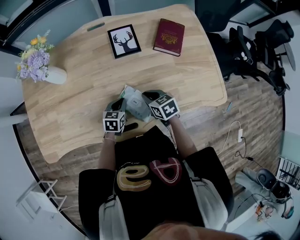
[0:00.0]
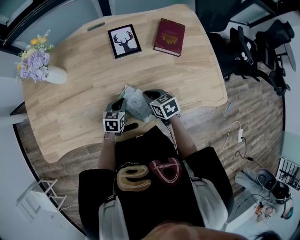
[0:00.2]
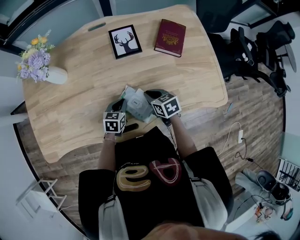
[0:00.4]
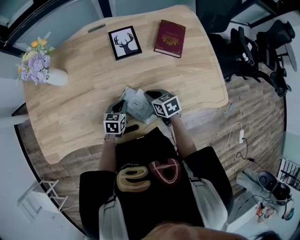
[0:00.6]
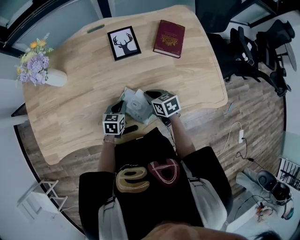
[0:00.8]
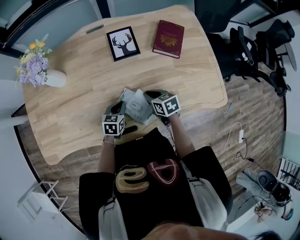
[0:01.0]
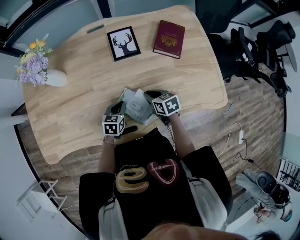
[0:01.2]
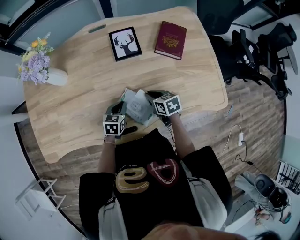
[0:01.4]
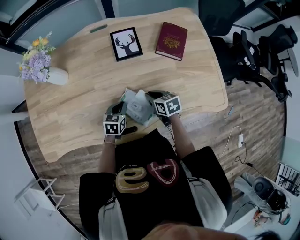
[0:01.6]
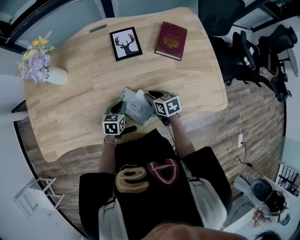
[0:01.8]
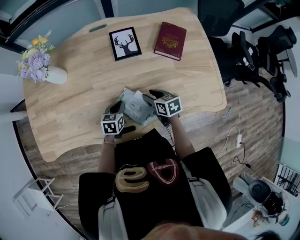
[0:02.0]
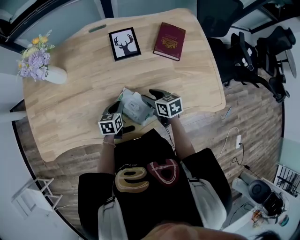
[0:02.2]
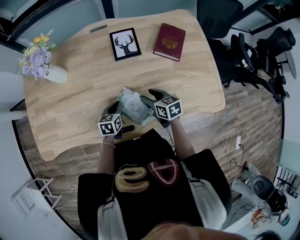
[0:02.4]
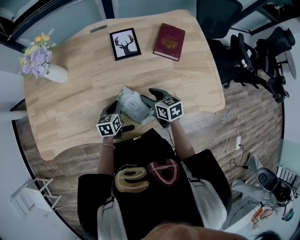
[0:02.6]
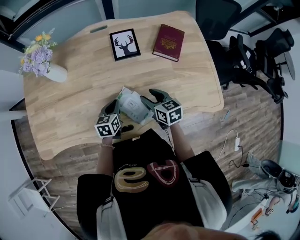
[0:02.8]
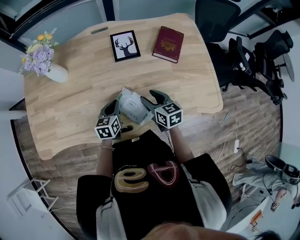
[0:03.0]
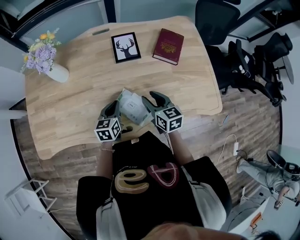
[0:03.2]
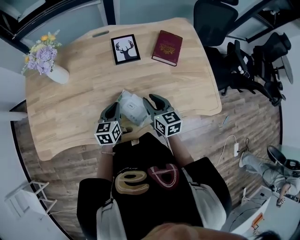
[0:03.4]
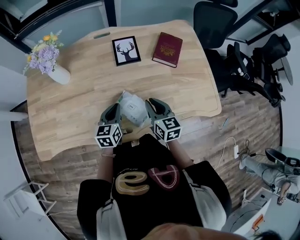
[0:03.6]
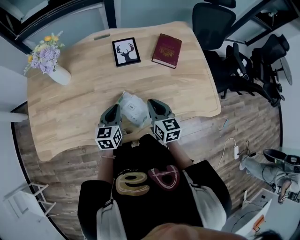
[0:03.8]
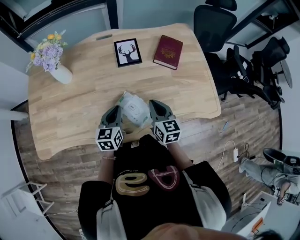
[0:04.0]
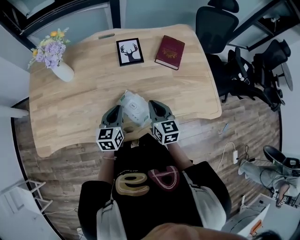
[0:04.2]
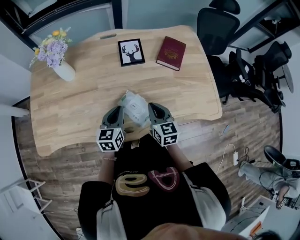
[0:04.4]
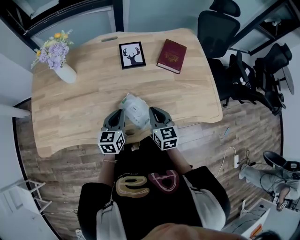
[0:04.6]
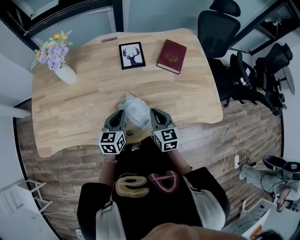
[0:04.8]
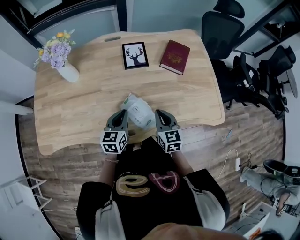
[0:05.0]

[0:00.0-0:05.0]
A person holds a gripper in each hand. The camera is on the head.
0.0 to 1.6 s: The grippers stay close to where they were, moving slightly.
1.6 to 3.4 s: Both grippers move upward, approximately 10 cm. The right gripper turns by approximately 30 degrees; the left gripper changes its angle by approximately 20 degrees.
3.4 to 5.0 s: The right gripper changes place by about 5 cm, and closes its fingers.

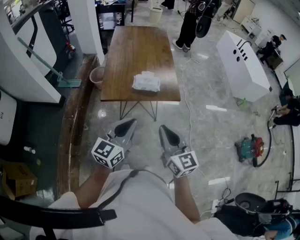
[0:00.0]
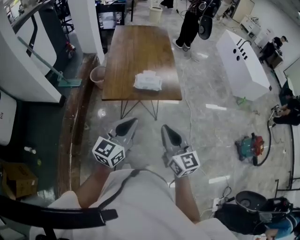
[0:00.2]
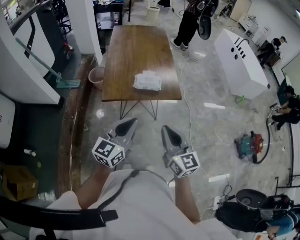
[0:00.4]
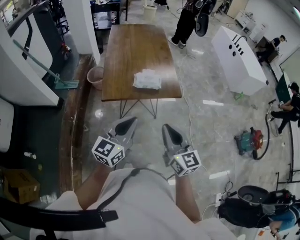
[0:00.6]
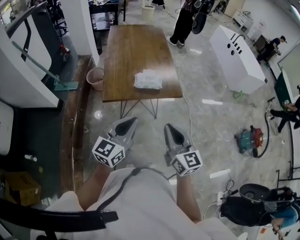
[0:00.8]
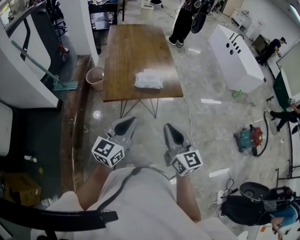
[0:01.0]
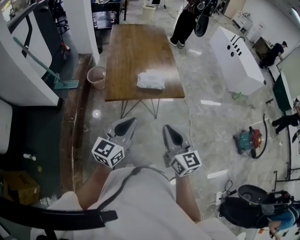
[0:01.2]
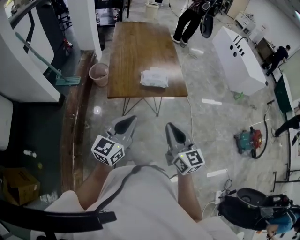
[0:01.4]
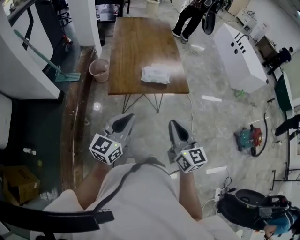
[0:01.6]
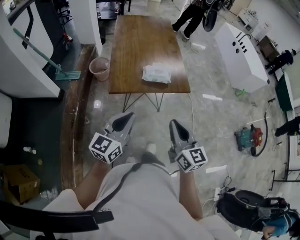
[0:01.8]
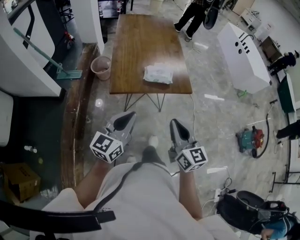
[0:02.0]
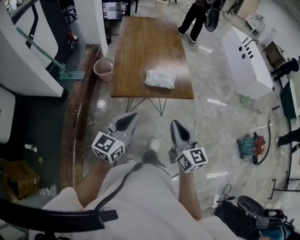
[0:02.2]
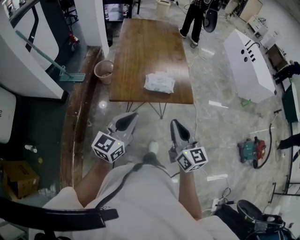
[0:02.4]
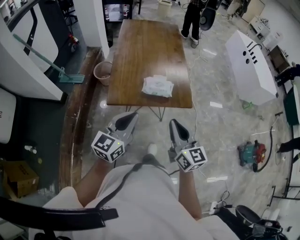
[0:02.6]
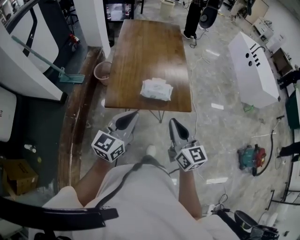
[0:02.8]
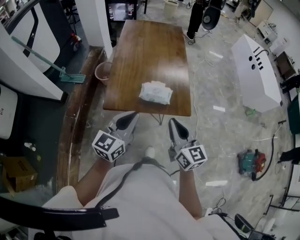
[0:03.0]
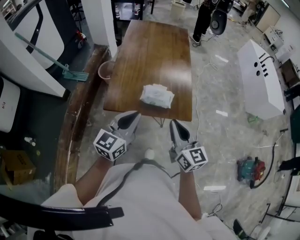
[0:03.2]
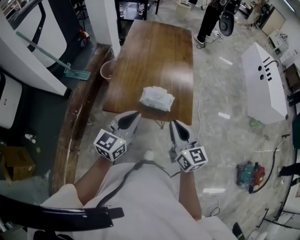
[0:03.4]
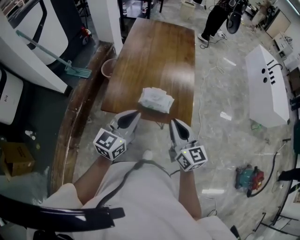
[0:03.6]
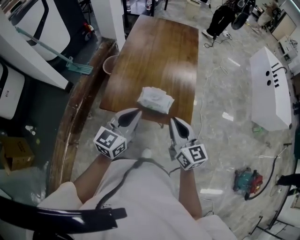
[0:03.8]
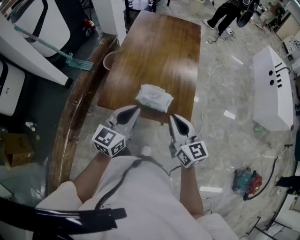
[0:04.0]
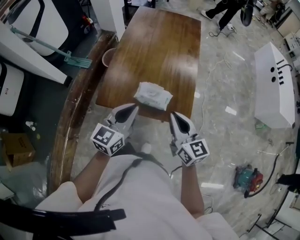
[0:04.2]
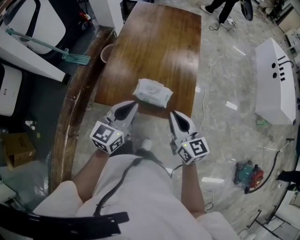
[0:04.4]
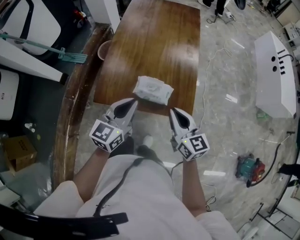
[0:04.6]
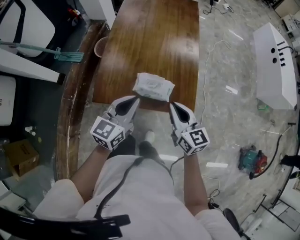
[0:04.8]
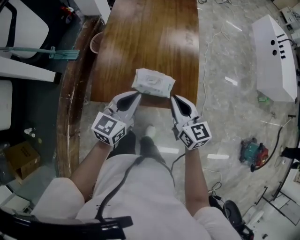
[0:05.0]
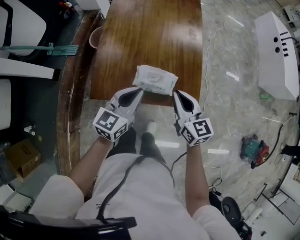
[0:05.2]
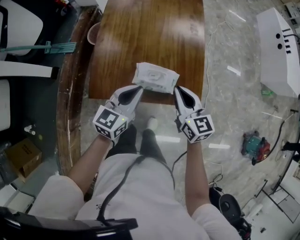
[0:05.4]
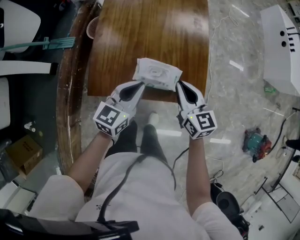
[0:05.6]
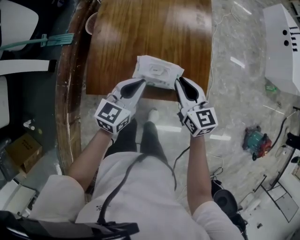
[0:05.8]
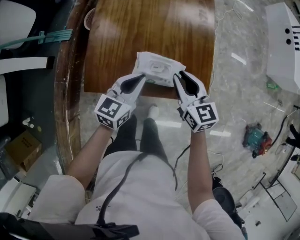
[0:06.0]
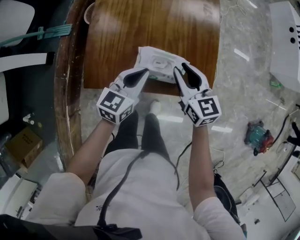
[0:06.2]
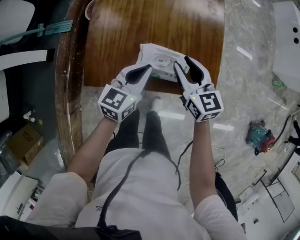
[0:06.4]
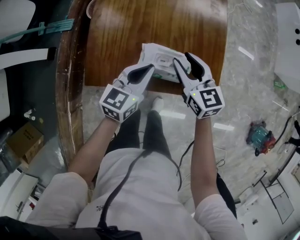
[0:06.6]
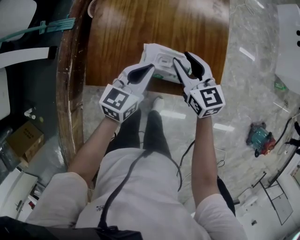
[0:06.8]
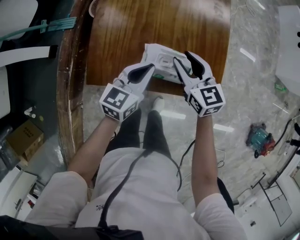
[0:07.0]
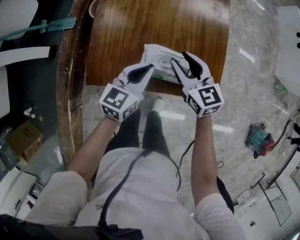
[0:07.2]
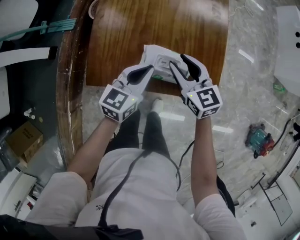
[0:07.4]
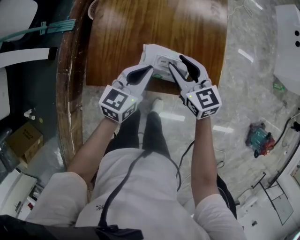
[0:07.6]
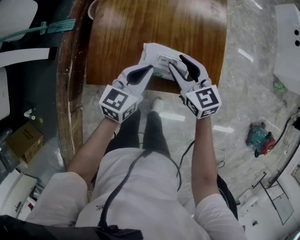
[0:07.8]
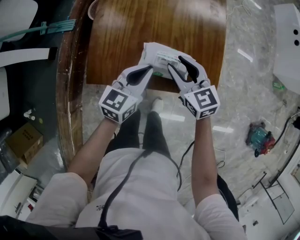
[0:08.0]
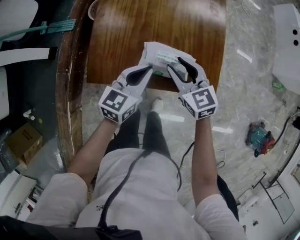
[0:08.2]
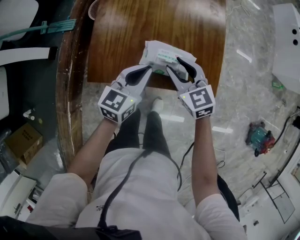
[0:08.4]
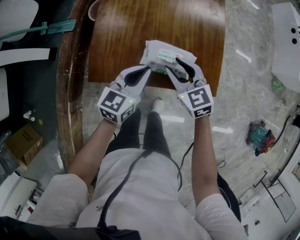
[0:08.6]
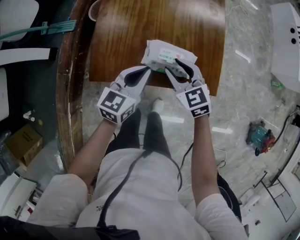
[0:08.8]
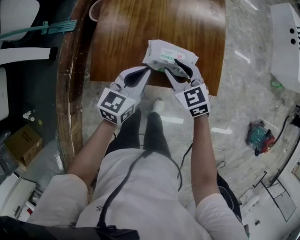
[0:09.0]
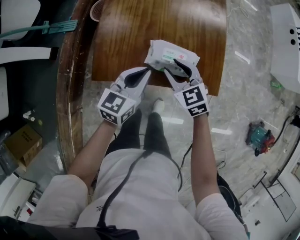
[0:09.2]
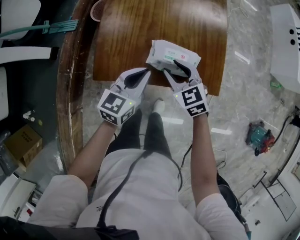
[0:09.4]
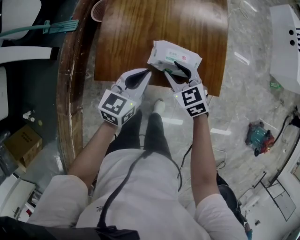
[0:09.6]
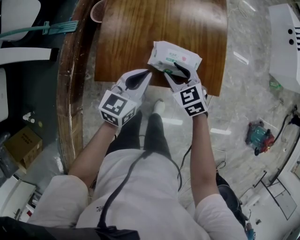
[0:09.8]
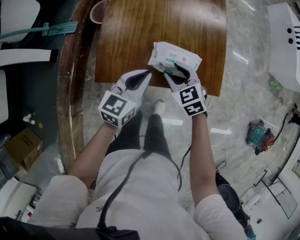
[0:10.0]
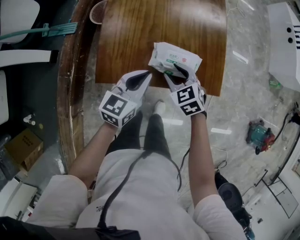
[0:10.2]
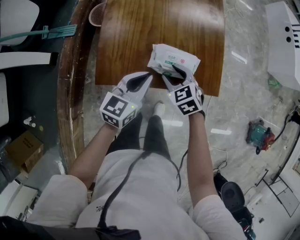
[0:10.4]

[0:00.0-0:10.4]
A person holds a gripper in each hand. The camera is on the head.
0.0 to 1.4 s: Both grippers travel together to the left, approximately 10 cm.
1.4 to 3.0 s: Both grippers travel together forward, approximately 20 cm.
3.0 to 4.4 s: The left gripper goes approximately 15 cm forward and to the right. The right gripper moves forward, to the right and downward, about 15 cm.
4.4 to 6.0 s: The grippers both shift downward and forward by roughly 20 cm.
6.0 to 7.4 s: The right gripper ends up approximately 5 cm from where it was.
7.4 to 9.0 s: The left gripper changes place by roughly 5 cm. The right gripper heads backward, covering roughly 5 cm.
9.0 to 10.4 s: There are only small adjustments of the grippers.

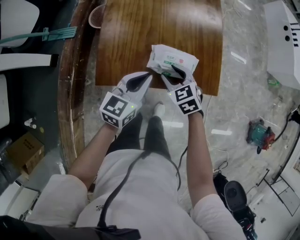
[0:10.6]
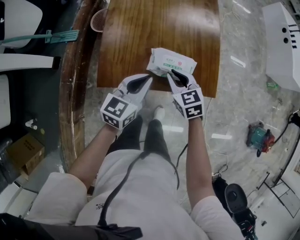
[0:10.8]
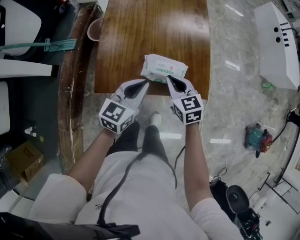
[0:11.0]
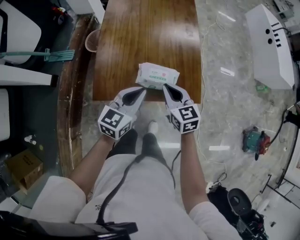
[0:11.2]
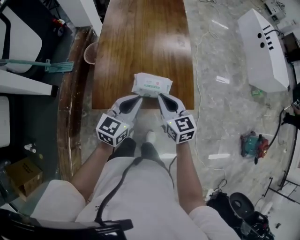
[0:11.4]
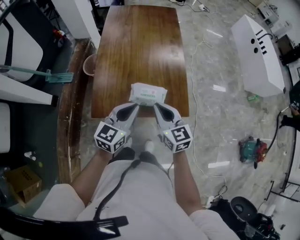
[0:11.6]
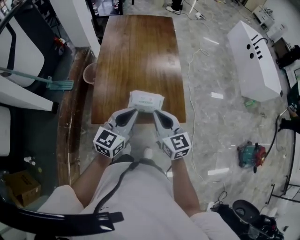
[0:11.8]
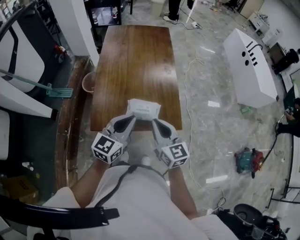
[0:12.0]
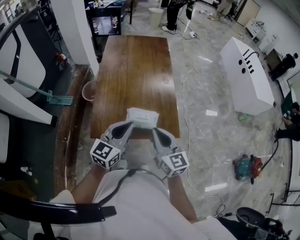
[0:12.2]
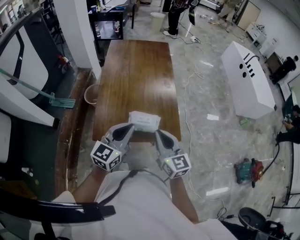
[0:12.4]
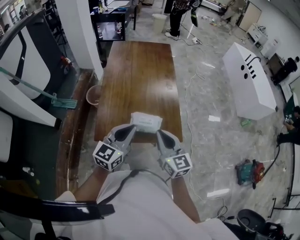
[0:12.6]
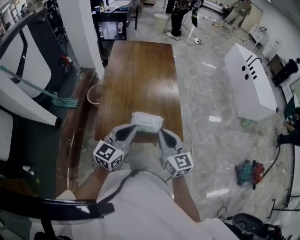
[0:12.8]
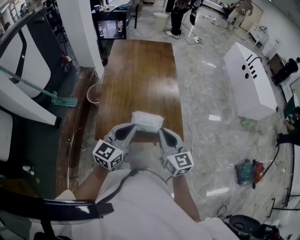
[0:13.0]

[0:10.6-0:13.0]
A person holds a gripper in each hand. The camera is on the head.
10.6 to 11.8 s: Both grippers travel together upward, approximately 20 cm. The right gripper tips its fingers upward by some 30 degrees, and closes up.
11.8 to 13.0 s: The right gripper travels upward by roughly 5 cm, while the left gripper ends up about 5 cm from where it was.

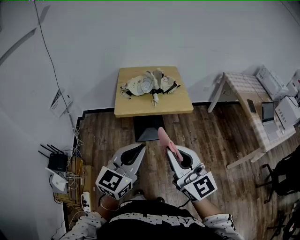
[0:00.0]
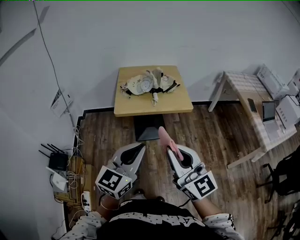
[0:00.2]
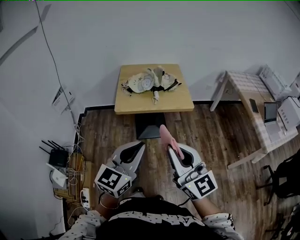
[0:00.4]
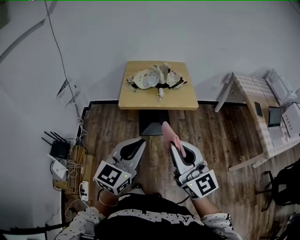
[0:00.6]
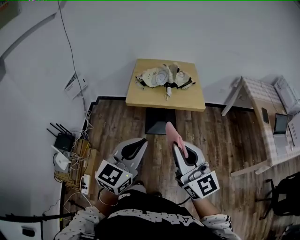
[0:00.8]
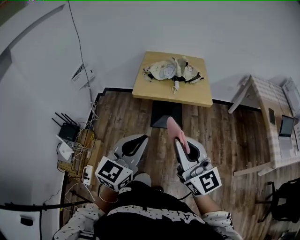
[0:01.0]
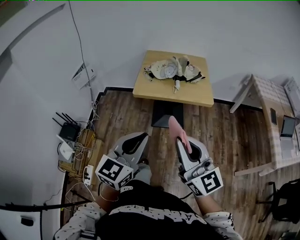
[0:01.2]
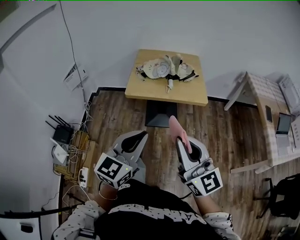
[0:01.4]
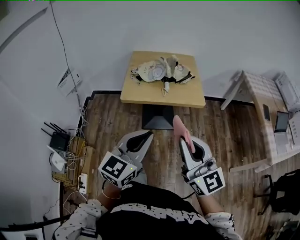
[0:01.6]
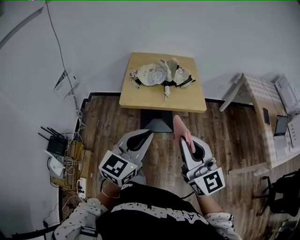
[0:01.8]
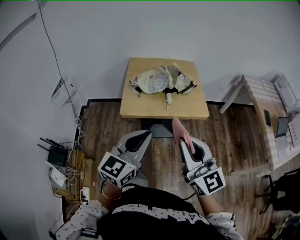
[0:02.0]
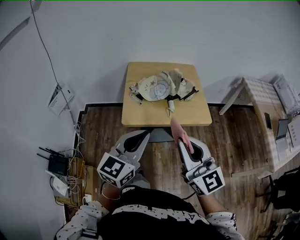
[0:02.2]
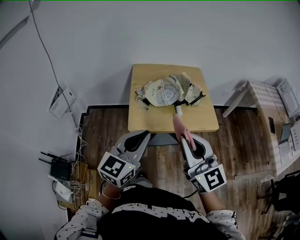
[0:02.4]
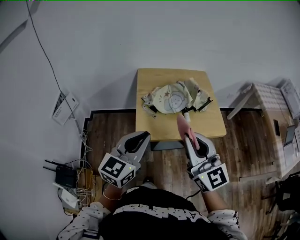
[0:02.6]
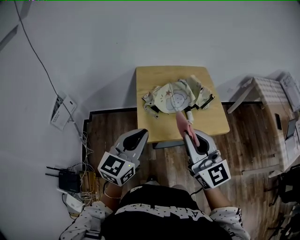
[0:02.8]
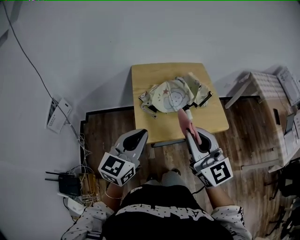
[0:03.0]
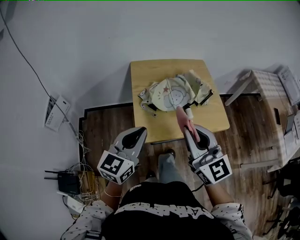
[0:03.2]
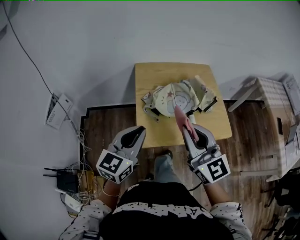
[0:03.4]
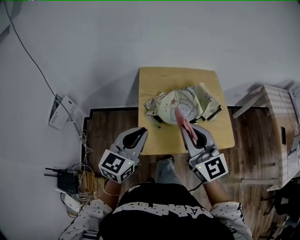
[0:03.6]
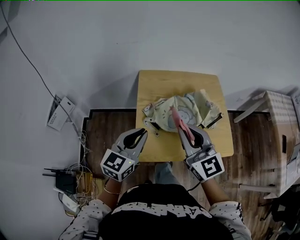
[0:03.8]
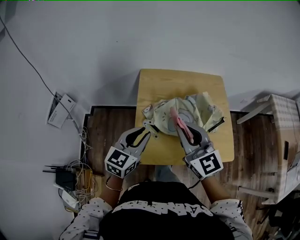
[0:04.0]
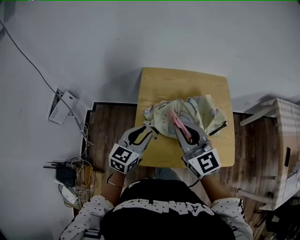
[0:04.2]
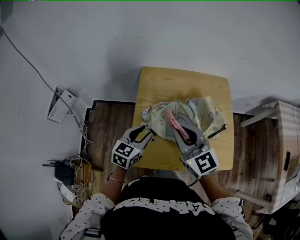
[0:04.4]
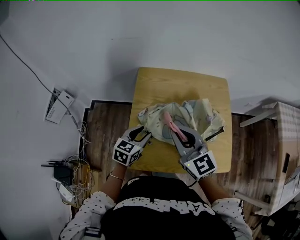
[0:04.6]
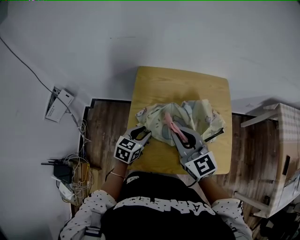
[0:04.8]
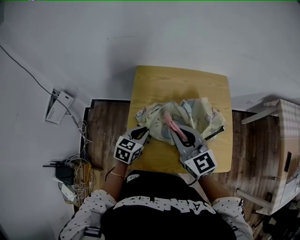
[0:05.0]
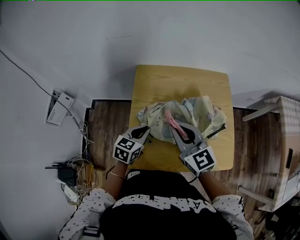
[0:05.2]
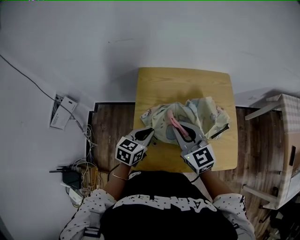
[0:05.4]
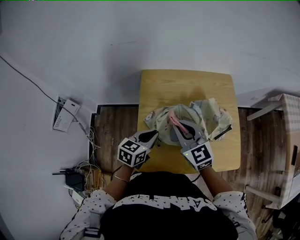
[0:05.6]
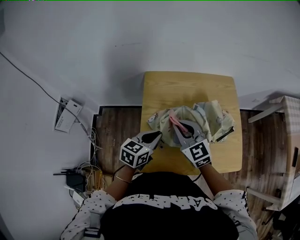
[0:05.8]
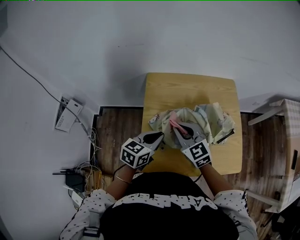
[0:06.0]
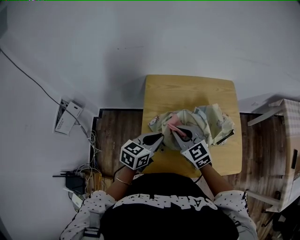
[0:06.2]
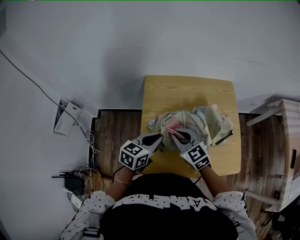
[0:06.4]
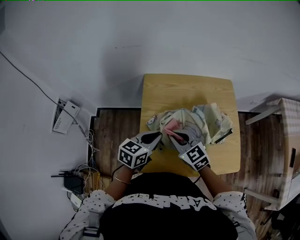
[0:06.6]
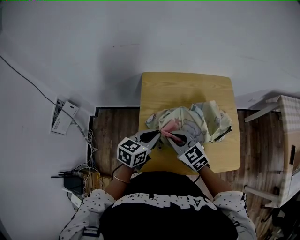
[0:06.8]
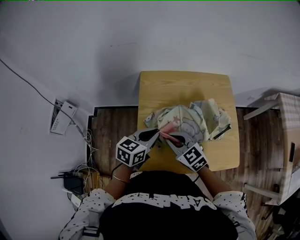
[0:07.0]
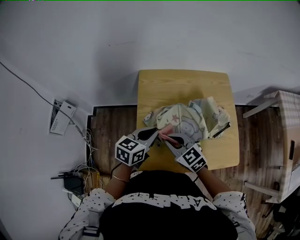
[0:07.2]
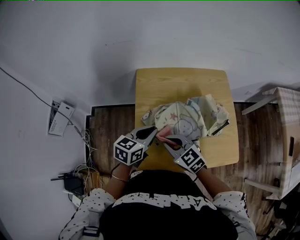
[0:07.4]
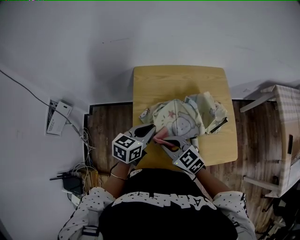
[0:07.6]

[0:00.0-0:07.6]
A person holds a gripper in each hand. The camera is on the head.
0.0 to 1.6 s: The left gripper moves roughly 5 cm. The right gripper travels to the right by about 5 cm.
1.6 to 3.0 s: The grippers both shift forward and to the left by roughly 35 cm.
3.0 to 4.6 s: The two grippers go some 25 cm forward and downward. The right gripper changes its angle by roughly 20 degrees. The left gripper rotates some 30 degrees, and opens its fingers.
4.6 to 6.0 s: The left gripper shifts by roughly 5 cm, and closes its fingers; the right gripper moves downward and forward, approximately 10 cm.
6.0 to 7.6 s: The right gripper moves backward, some 10 cm.
